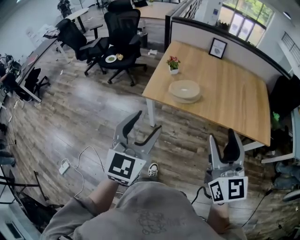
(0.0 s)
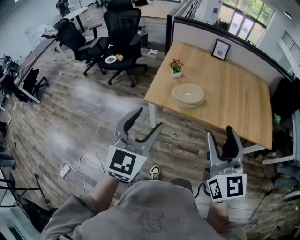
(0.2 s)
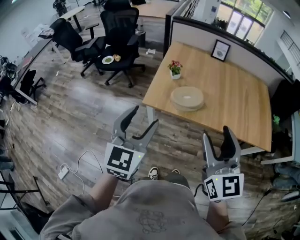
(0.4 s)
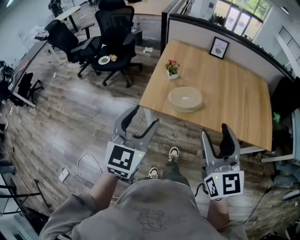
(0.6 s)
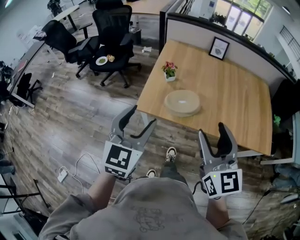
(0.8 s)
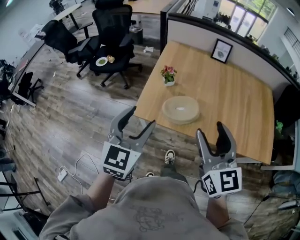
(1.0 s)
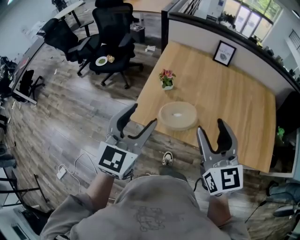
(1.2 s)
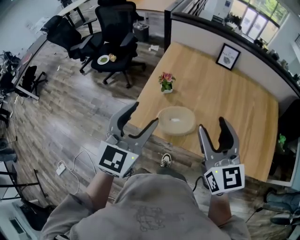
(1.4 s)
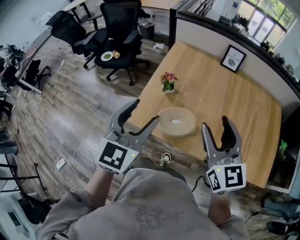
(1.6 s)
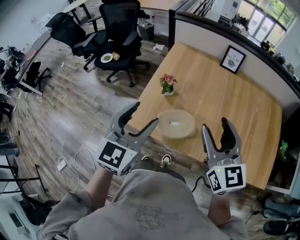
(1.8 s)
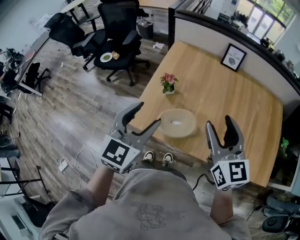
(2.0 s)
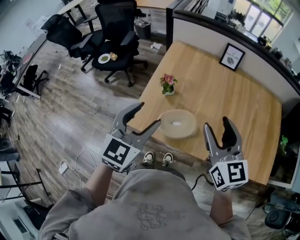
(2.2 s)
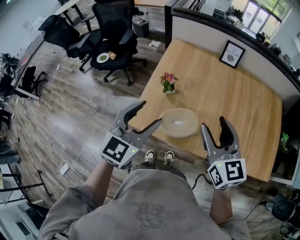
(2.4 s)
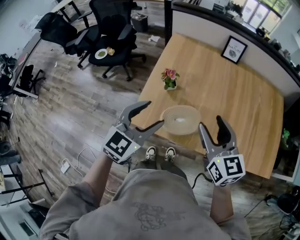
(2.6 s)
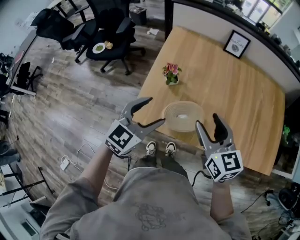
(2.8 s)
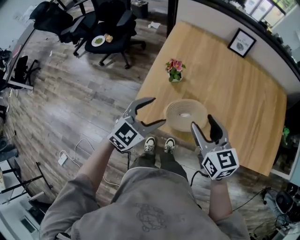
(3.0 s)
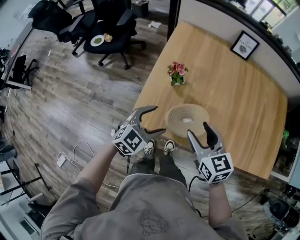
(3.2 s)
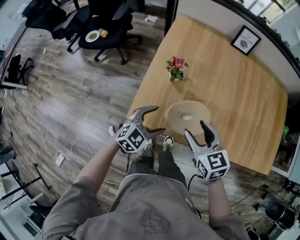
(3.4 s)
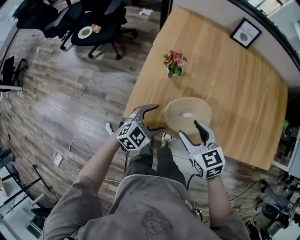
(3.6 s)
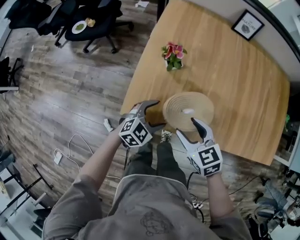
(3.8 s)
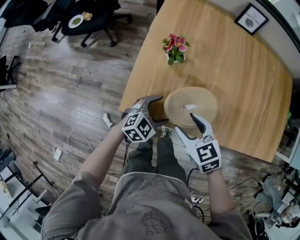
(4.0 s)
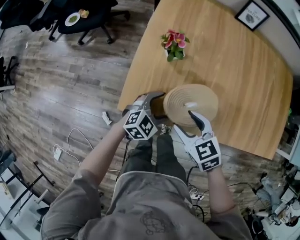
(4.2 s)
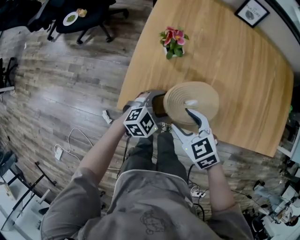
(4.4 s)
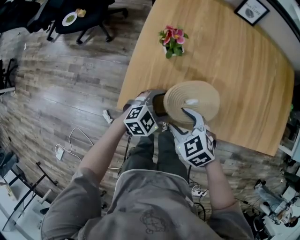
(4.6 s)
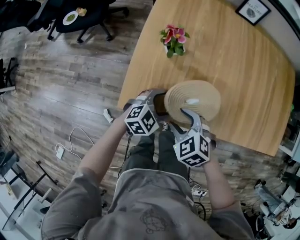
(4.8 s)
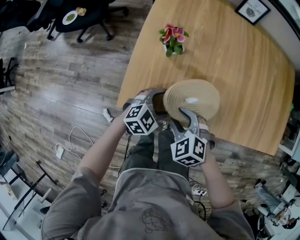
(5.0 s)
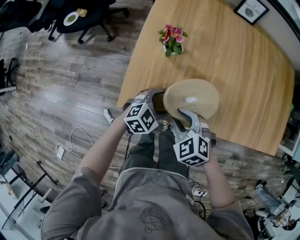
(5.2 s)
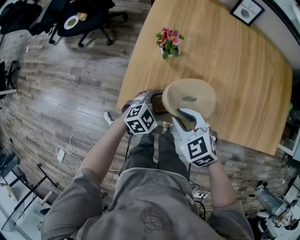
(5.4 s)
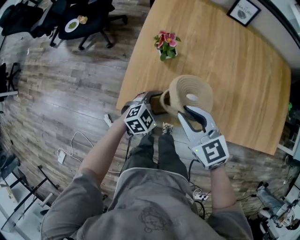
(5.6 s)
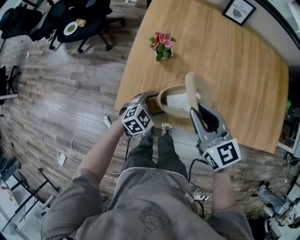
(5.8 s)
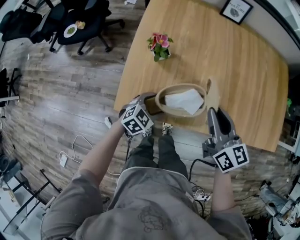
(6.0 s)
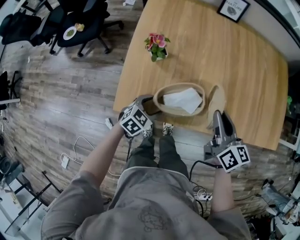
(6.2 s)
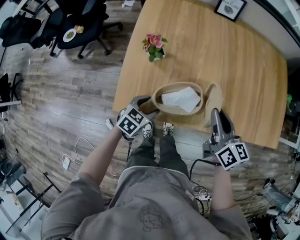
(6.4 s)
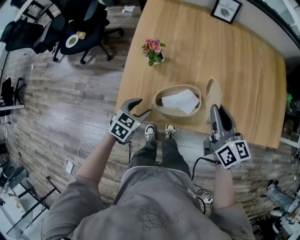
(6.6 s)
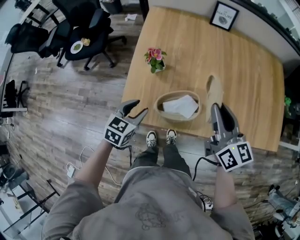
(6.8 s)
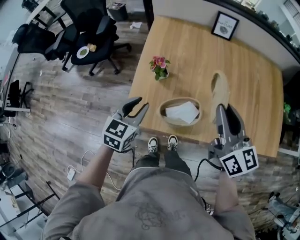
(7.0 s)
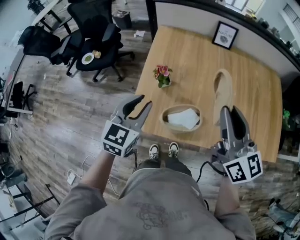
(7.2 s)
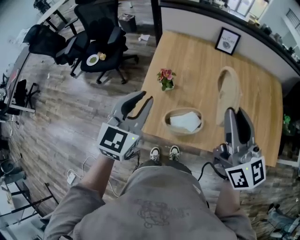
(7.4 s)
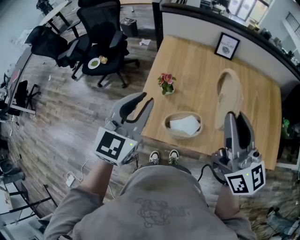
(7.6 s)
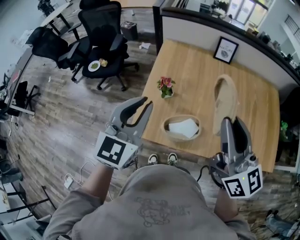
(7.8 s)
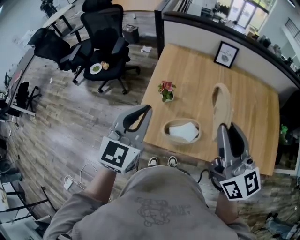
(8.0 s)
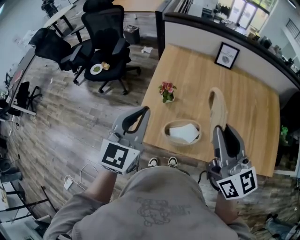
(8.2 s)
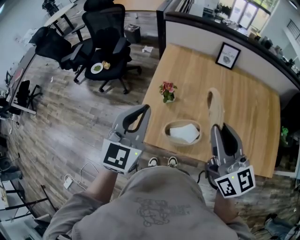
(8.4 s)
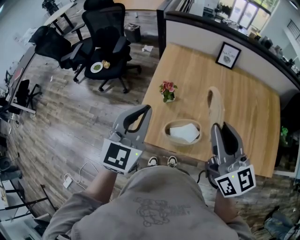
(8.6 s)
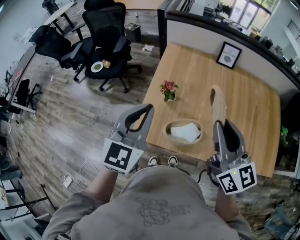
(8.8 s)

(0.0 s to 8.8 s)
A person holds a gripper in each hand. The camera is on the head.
0.0 s - 1.4 s: The two grippers go some 35 cm forward.
1.4 s - 3.0 s: The left gripper goes some 20 cm downward and forward, and turns by approximately 30 degrees. Meanwhile the right gripper travels downward, forward and to the left by approximately 15 cm, and swivels some 20 degrees.
3.0 s - 4.4 s: The two grippers go roughly 20 cm downward. The left gripper changes its angle by about 20 degrees. The right gripper rotates about 30 degrees.
4.4 s - 5.8 s: The right gripper shifts some 15 cm upward and to the right, changes its angle by roughly 30 degrees, and closes its fingers.
5.8 s - 7.4 s: The two grippers go approximately 30 cm upward. The left gripper tilts its fingers approximately 30 degrees upward, and closes. The right gripper swivels about 30 degrees.
7.4 s - 8.8 s: The grippers stay close to where they were, moving slightly.

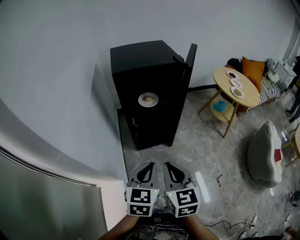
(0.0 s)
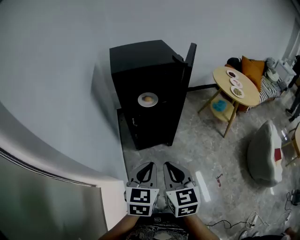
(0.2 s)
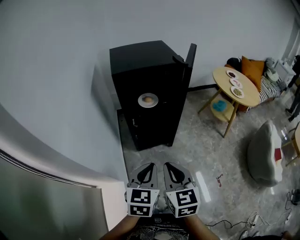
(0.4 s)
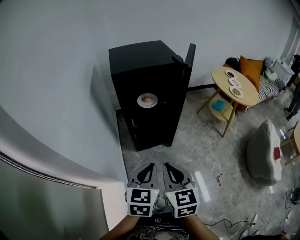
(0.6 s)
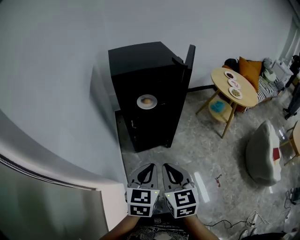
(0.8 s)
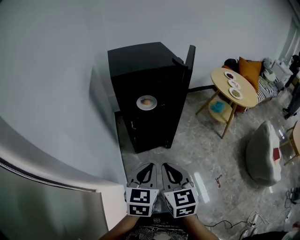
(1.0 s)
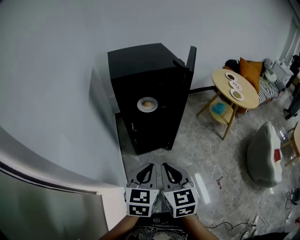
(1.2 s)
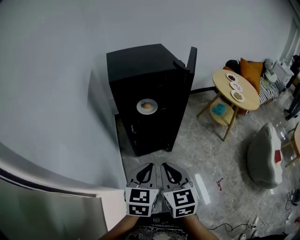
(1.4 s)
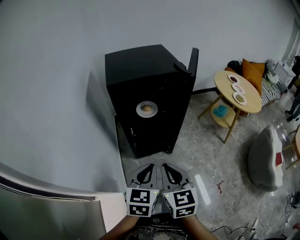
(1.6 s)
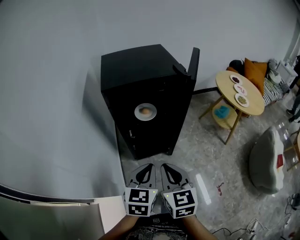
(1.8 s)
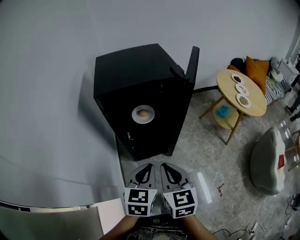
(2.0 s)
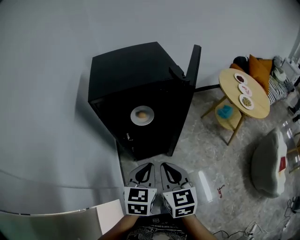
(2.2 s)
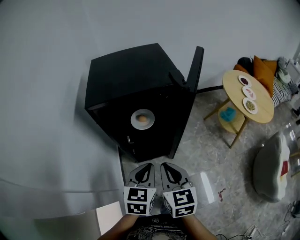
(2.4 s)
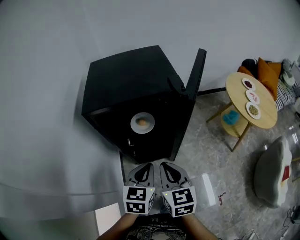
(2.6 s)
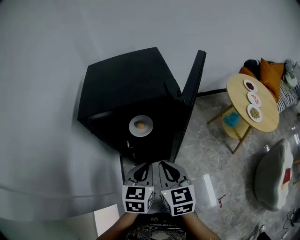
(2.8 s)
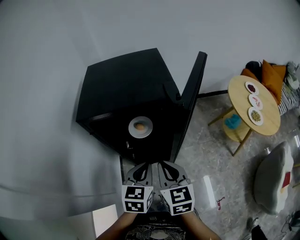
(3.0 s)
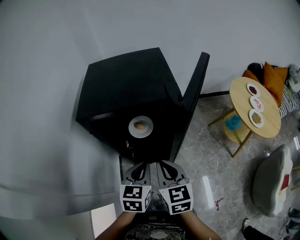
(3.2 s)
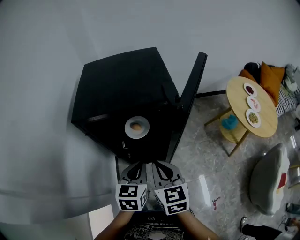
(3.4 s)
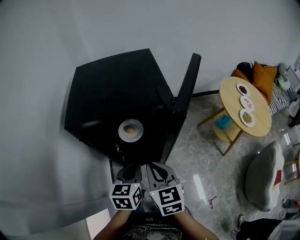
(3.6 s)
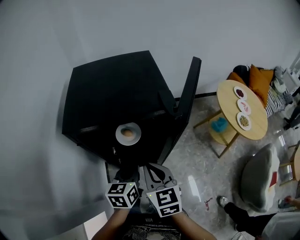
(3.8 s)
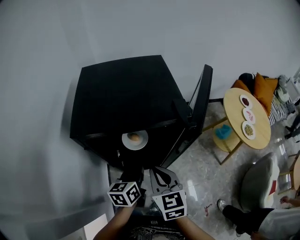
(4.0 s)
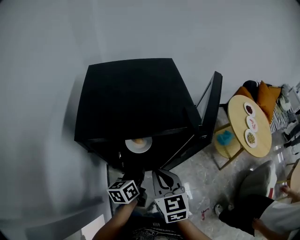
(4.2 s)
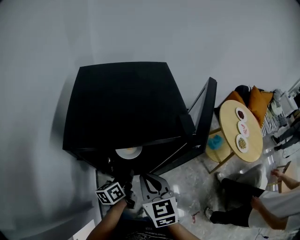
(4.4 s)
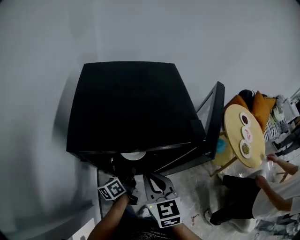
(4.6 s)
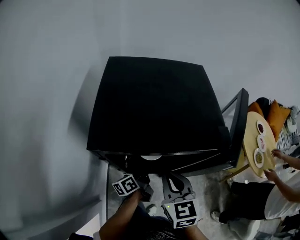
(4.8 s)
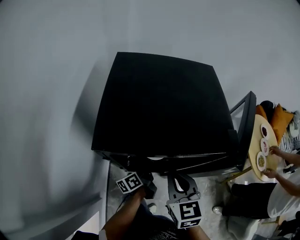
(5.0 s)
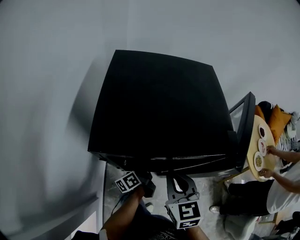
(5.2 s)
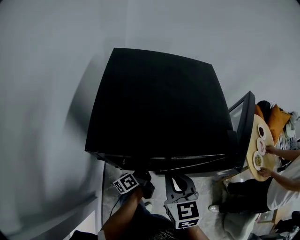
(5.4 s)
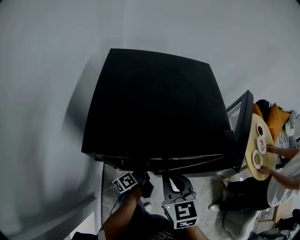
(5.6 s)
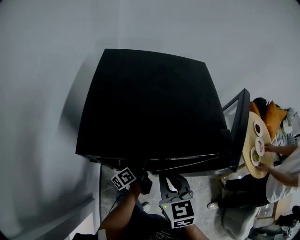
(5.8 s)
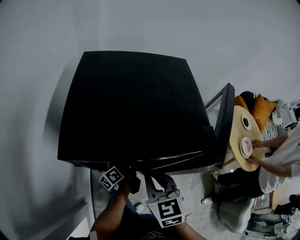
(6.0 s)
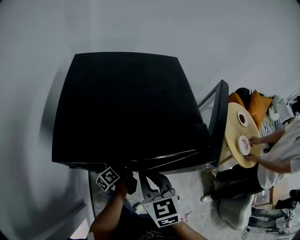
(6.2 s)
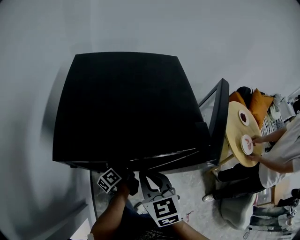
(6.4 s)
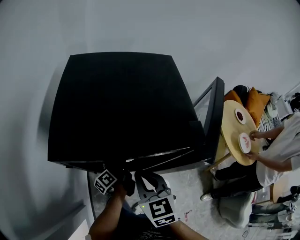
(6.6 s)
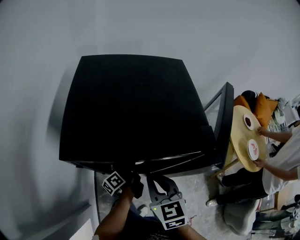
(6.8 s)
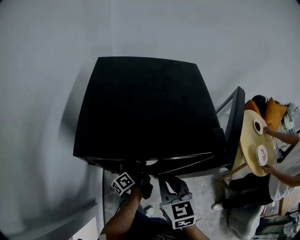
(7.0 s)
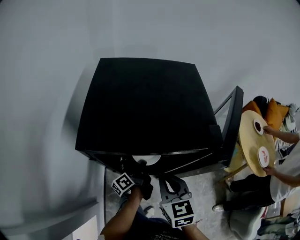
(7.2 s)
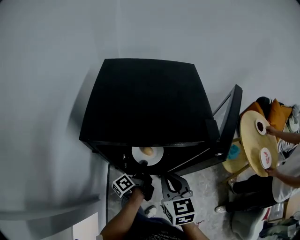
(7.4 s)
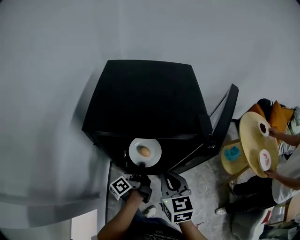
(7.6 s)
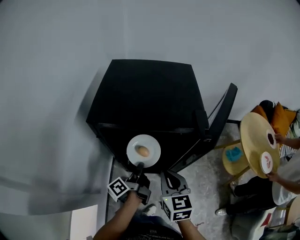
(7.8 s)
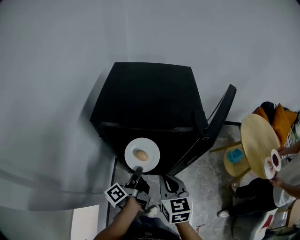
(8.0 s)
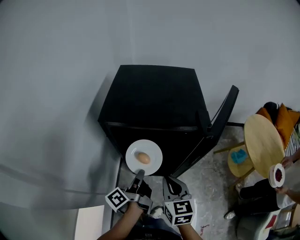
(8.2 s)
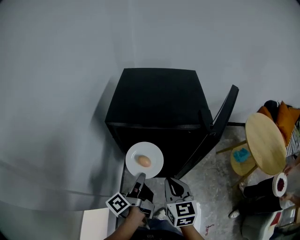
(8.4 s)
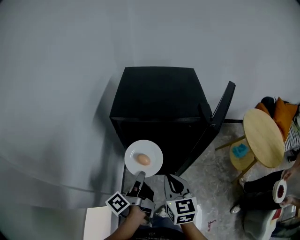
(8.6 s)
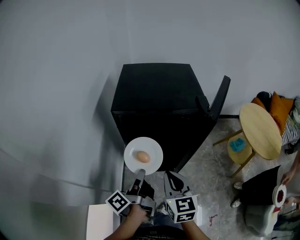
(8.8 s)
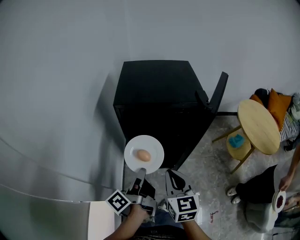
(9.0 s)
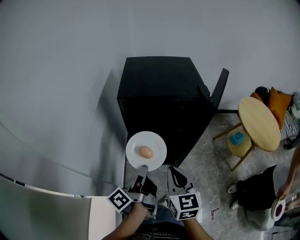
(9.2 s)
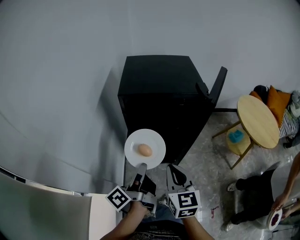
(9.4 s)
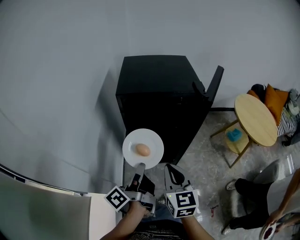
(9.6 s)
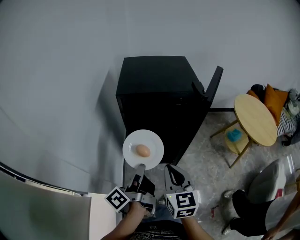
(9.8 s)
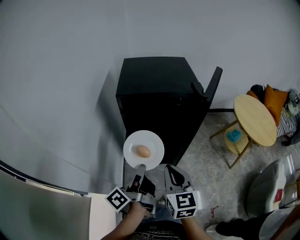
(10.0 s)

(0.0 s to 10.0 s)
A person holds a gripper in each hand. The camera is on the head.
0.0 s - 1.4 s: Both grippers move forward, about 5 cm.
1.4 s - 2.8 s: The two grippers go some 25 cm forward and to the right.
2.8 s - 4.2 s: The right gripper heads forward, covering approximately 10 cm. Meanwhile the left gripper shifts some 15 cm forward and downward, and rotates roughly 40 degrees.
4.2 s - 5.8 s: The right gripper is displaced forward by approximately 5 cm. The left gripper moves downward and forward, approximately 15 cm, changes its angle by about 40 degrees, and opens its fingers.
5.8 s - 7.2 s: The left gripper closes its fingers.
7.2 s - 8.6 s: The left gripper moves backward and upward, about 30 cm; the right gripper travels backward by roughly 15 cm.
8.6 s - 10.0 s: The grippers both shift backward by some 10 cm.

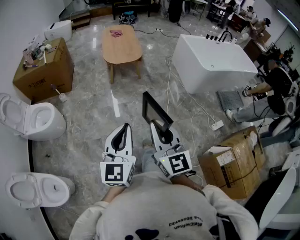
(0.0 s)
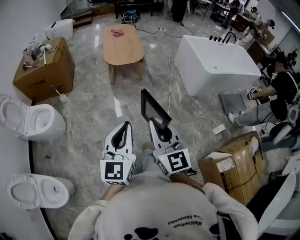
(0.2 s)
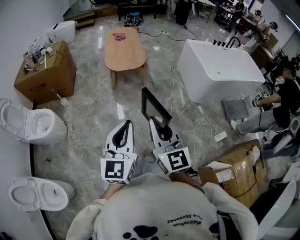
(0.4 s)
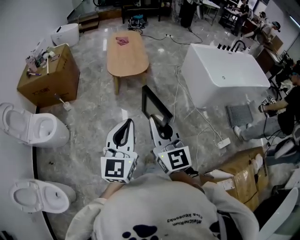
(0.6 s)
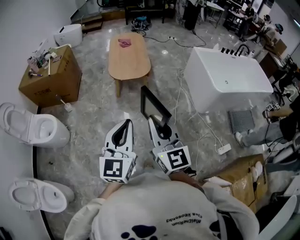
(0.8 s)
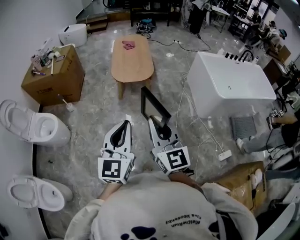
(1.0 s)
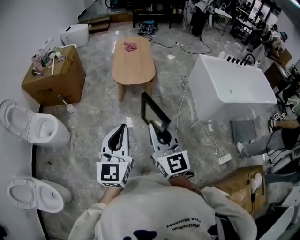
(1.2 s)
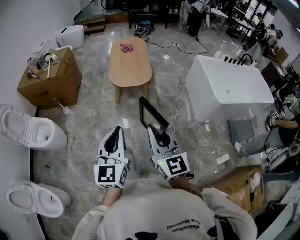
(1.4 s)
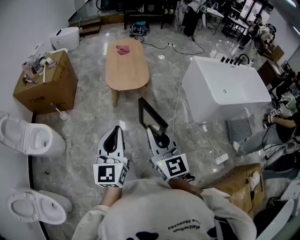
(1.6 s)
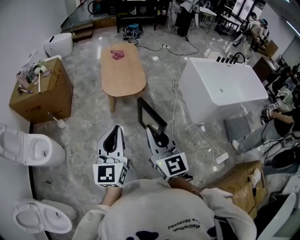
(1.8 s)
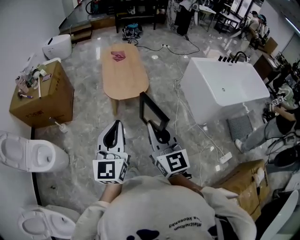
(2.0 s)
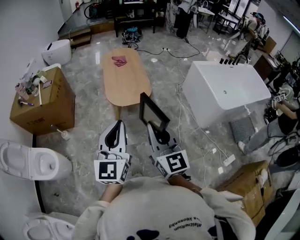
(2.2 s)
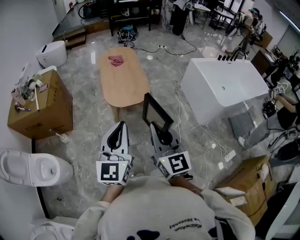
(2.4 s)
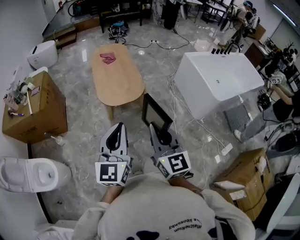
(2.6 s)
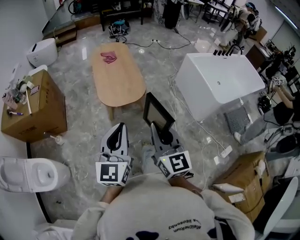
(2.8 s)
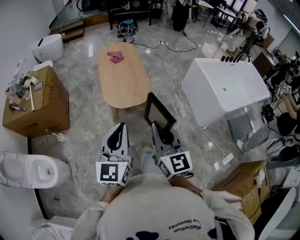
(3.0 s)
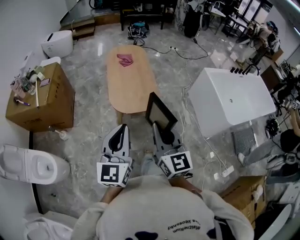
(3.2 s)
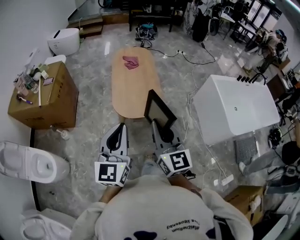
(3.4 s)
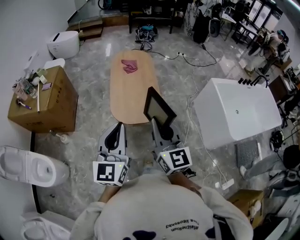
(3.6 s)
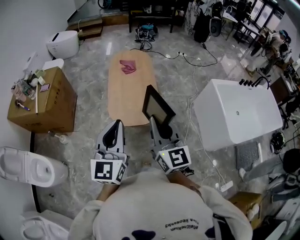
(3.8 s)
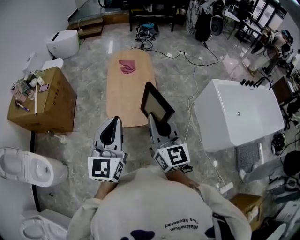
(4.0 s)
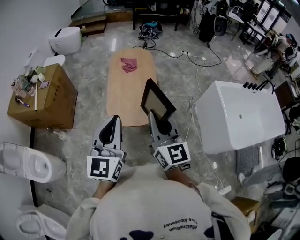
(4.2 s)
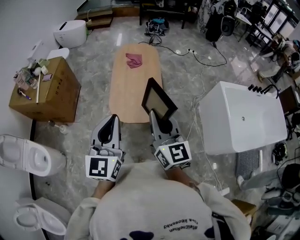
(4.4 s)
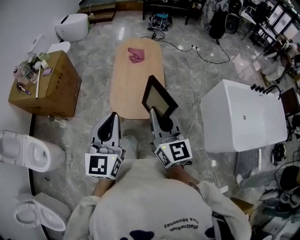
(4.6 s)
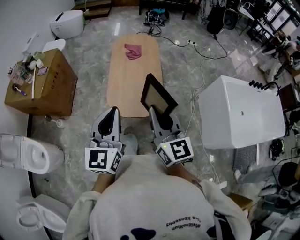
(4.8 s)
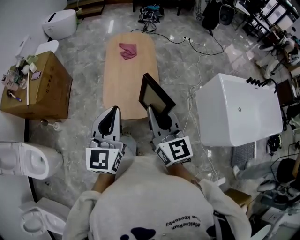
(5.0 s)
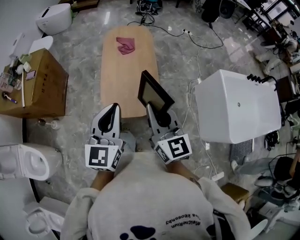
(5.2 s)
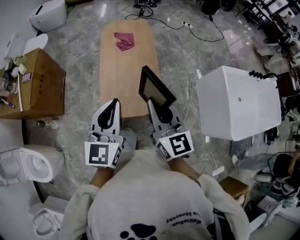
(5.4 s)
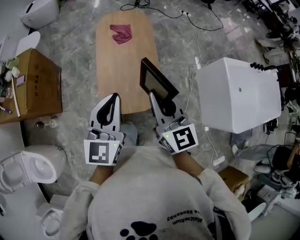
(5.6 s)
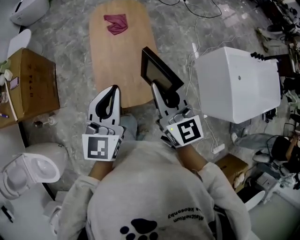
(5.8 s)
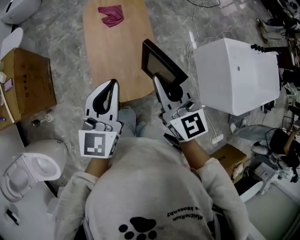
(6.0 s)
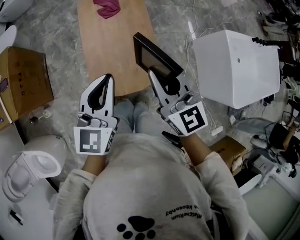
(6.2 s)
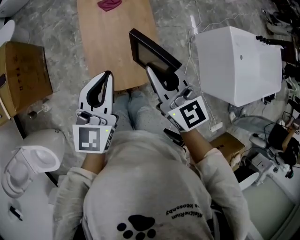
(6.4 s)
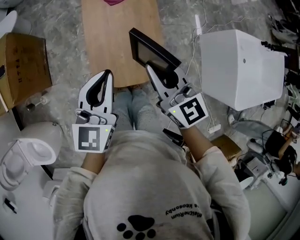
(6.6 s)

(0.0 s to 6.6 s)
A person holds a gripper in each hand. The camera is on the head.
0.0 s - 1.6 s: Both grippers travel together forward, roughly 30 cm.
1.6 s - 3.2 s: Both grippers travel together forward, some 25 cm.
3.2 s - 5.0 s: The grippers both shift forward by some 25 cm.
5.0 s - 6.6 s: Both grippers travel together forward and downward, approximately 20 cm.
